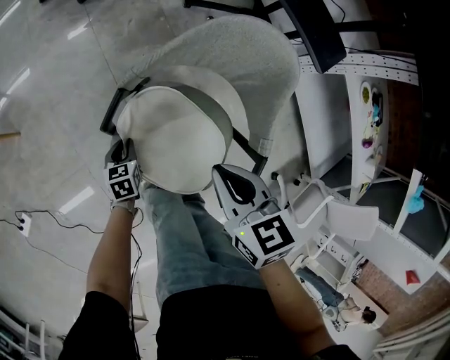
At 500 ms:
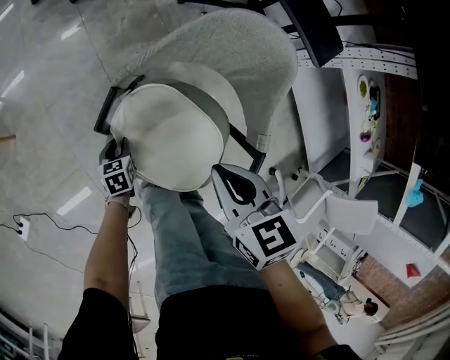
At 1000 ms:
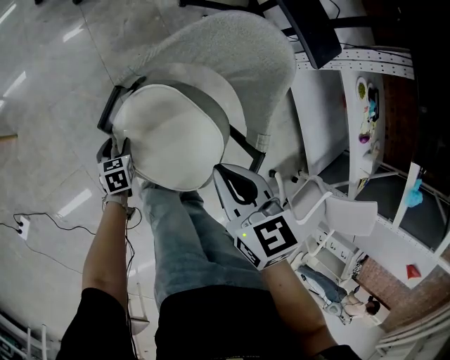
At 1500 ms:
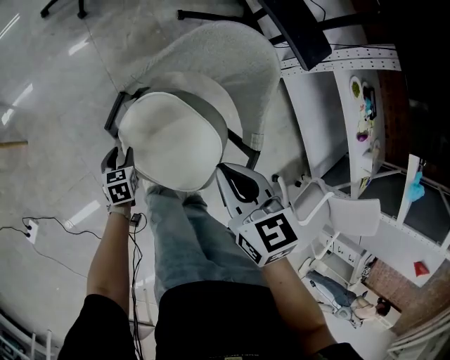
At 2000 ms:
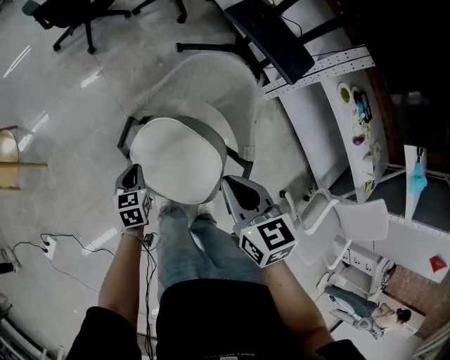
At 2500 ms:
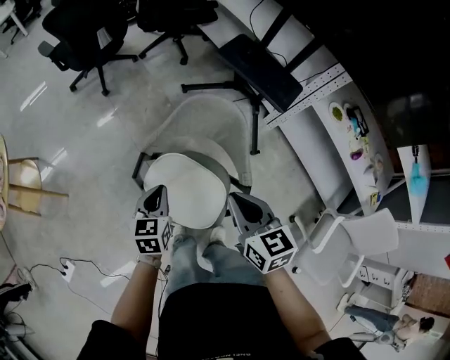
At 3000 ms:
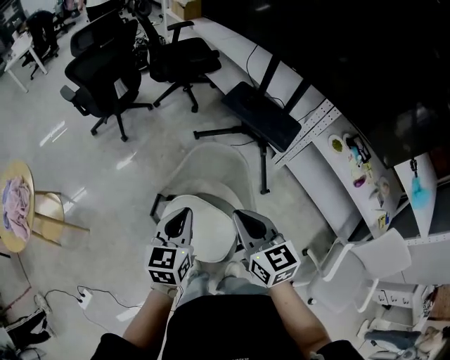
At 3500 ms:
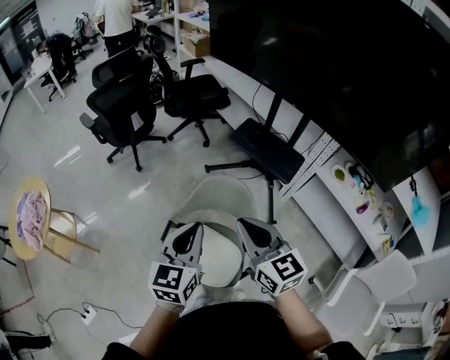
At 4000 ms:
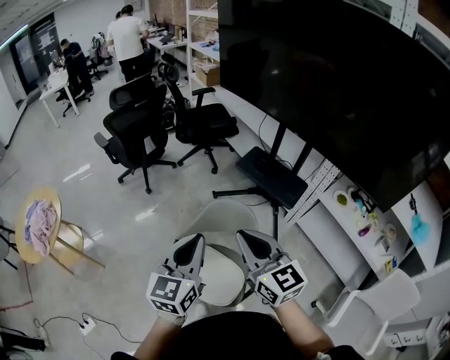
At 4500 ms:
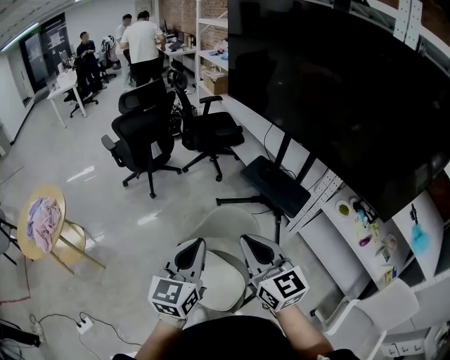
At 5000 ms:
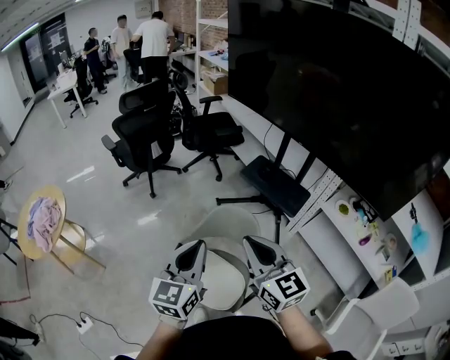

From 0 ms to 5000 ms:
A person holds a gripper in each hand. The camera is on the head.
From 0 ms to 2500 ms: The left gripper travels upward by roughly 35 cm, swivels approximately 20 degrees, and opens, then closes once more. The right gripper is displaced upward and to the right by roughly 15 cm, and turns by roughly 20 degrees.
From 2500 ms to 5000 ms: The two grippers go some 25 cm upward. The left gripper points its fingers roughly 30 degrees further upward; the right gripper turns by roughly 30 degrees.

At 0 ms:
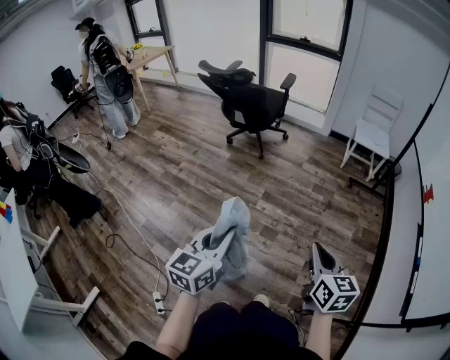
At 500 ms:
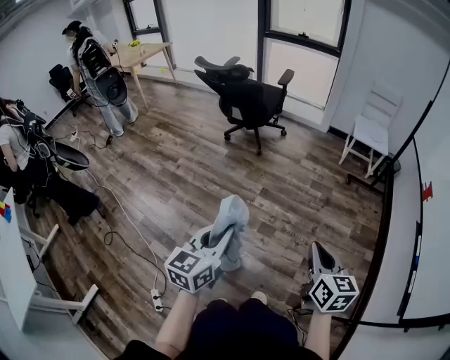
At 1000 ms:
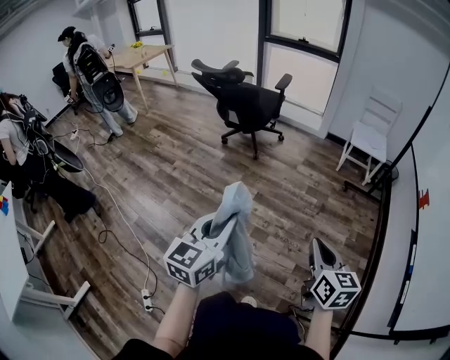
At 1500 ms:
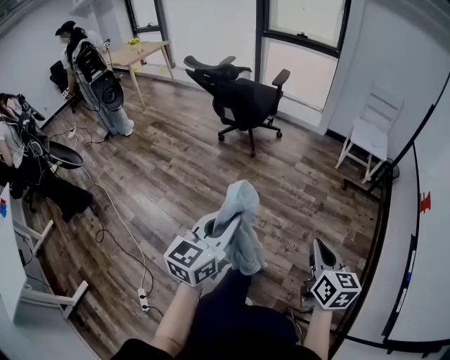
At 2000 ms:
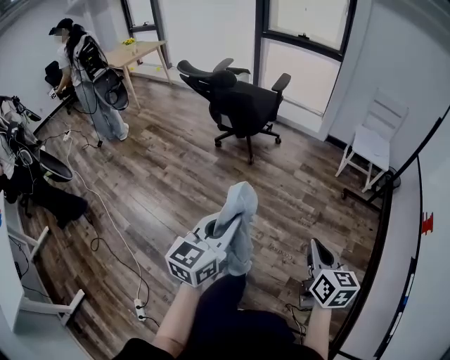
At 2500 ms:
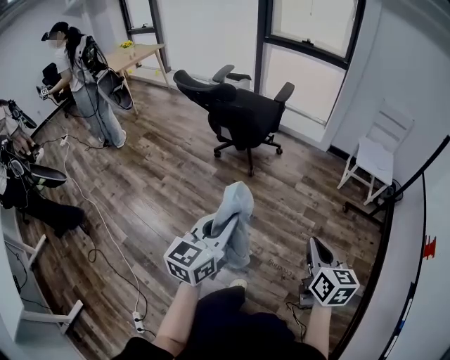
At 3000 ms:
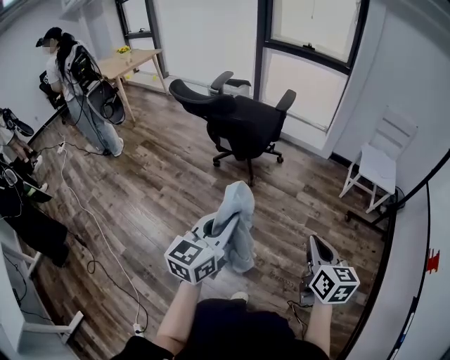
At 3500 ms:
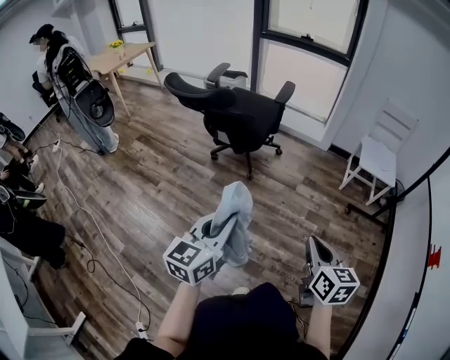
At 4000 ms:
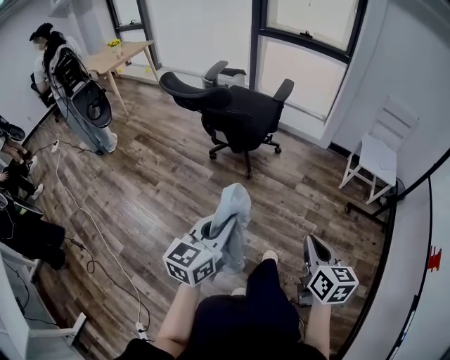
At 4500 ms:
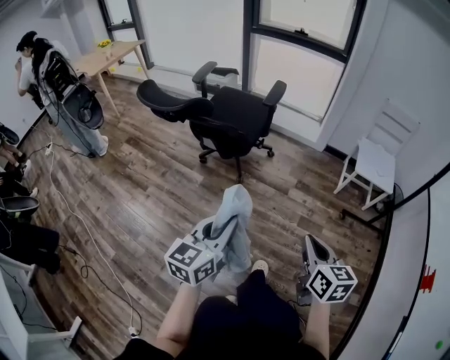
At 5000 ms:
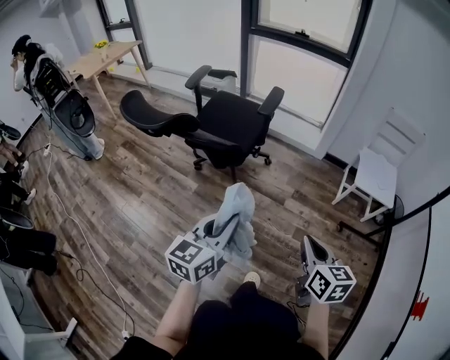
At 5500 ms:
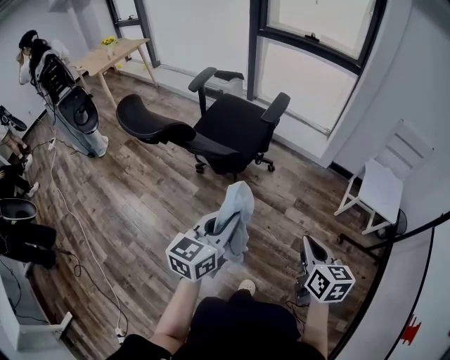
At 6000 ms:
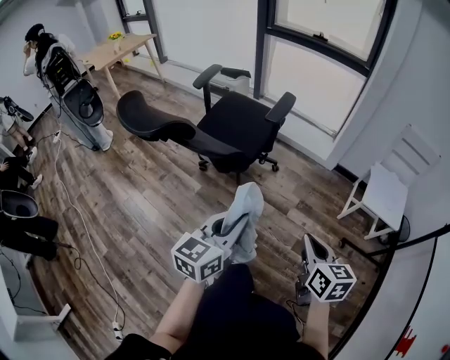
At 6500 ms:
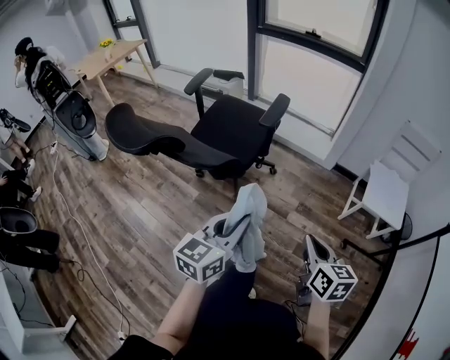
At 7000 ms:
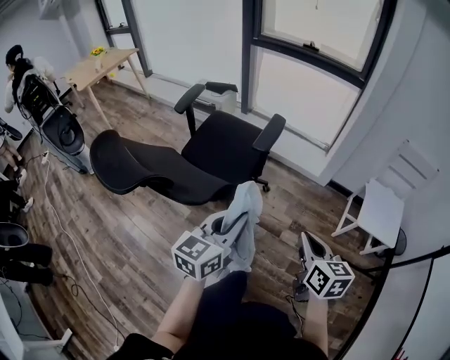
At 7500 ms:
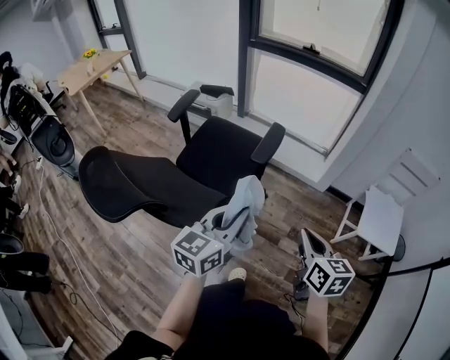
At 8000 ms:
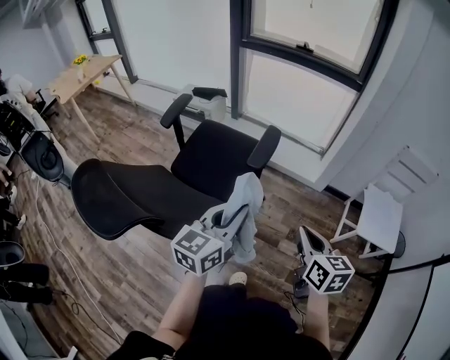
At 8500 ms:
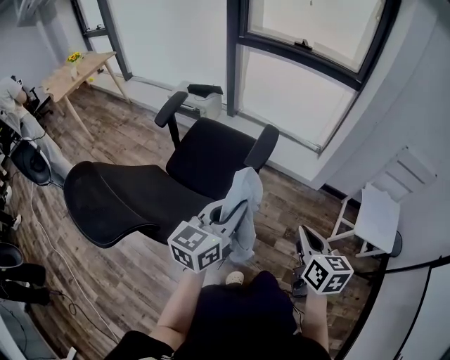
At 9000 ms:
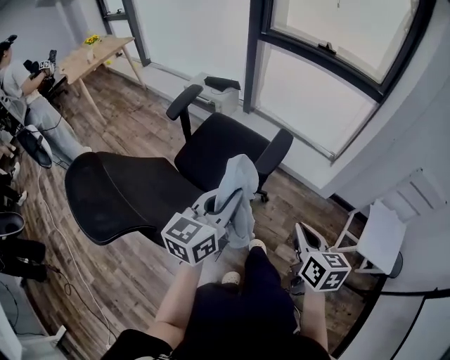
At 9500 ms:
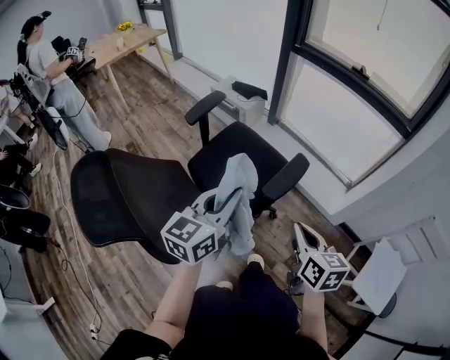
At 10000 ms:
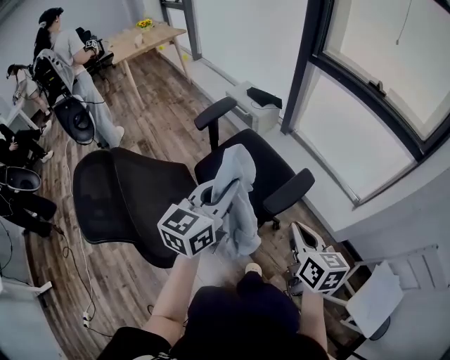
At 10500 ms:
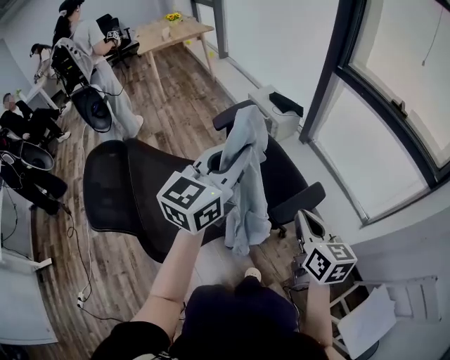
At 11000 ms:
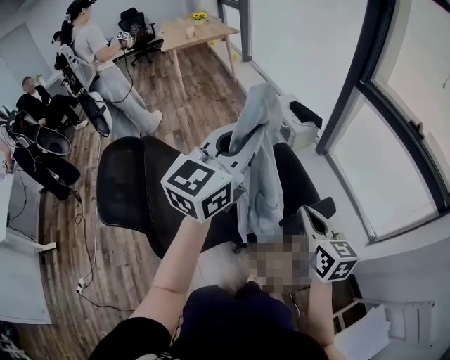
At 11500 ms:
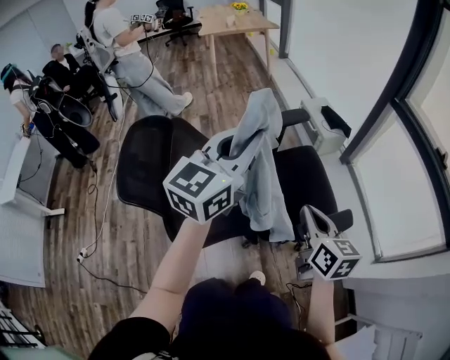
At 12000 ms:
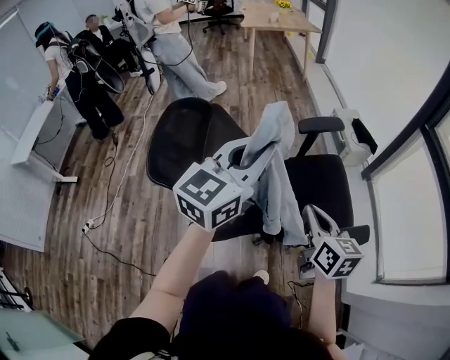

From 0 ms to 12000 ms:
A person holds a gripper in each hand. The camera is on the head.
From 0 ms to 2000 ms: The left gripper is displaced forward and to the right by approximately 20 cm. The right gripper goes some 20 cm forward.
From 2000 ms to 4000 ms: Both grippers move forward, approximately 20 cm.
From 4000 ms to 6000 ms: The right gripper moves forward, some 30 cm. Meanwhile the left gripper heads forward and to the right, covering about 30 cm.
From 6000 ms to 8000 ms: Both grippers move forward, approximately 30 cm.
From 8000 ms to 10000 ms: The left gripper moves some 20 cm, and rotates some 30 degrees. Meanwhile the right gripper shifts by approximately 25 cm, and turns by approximately 30 degrees.
From 10000 ms to 12000 ms: The right gripper shifts by approximately 20 cm, and swivels roughly 30 degrees, while the left gripper shifts by about 20 cm, and swivels some 30 degrees.

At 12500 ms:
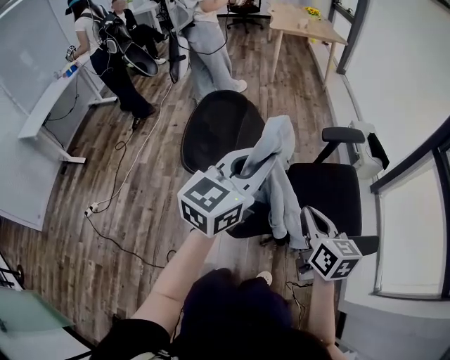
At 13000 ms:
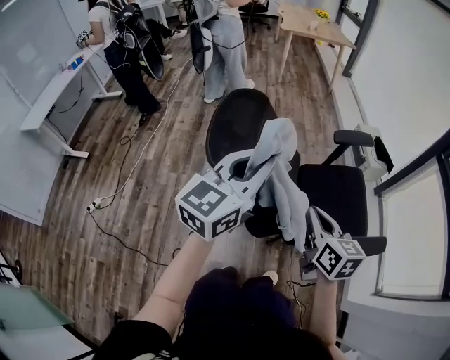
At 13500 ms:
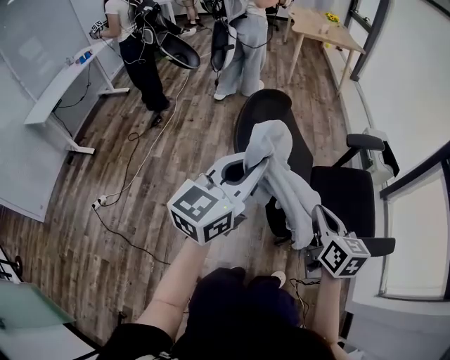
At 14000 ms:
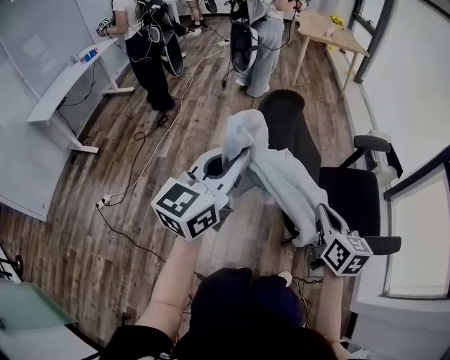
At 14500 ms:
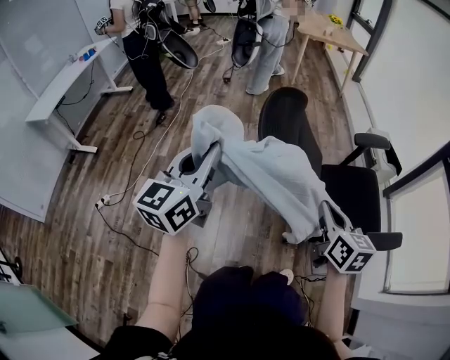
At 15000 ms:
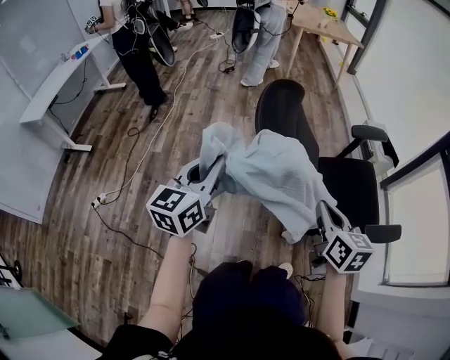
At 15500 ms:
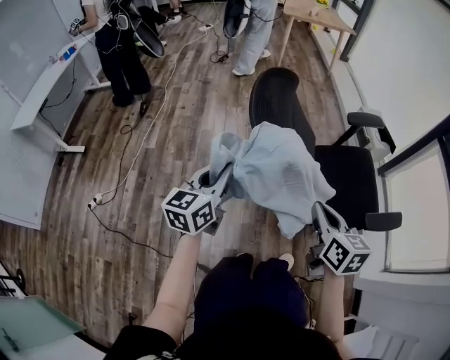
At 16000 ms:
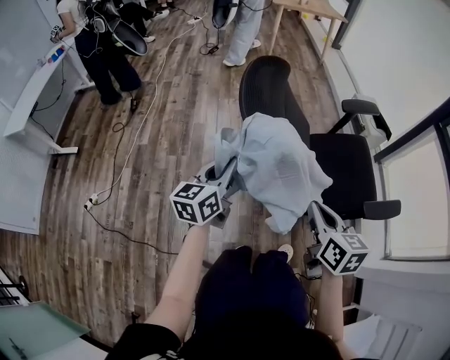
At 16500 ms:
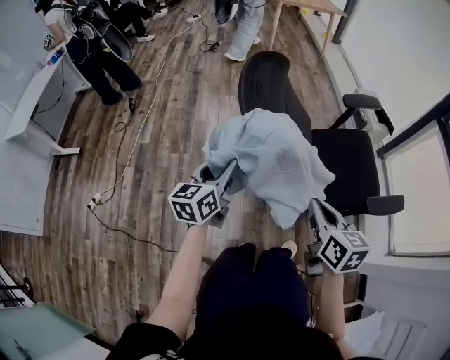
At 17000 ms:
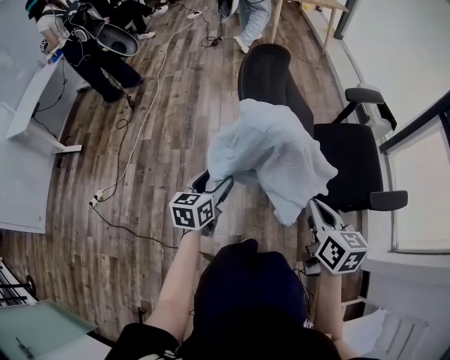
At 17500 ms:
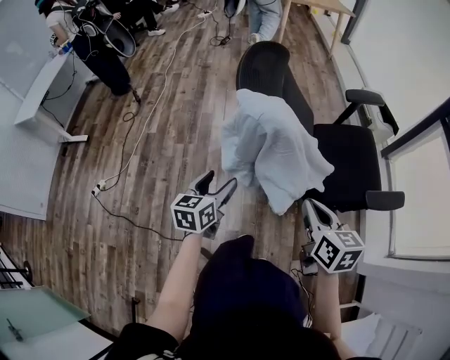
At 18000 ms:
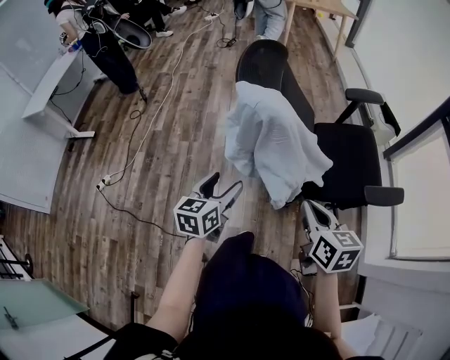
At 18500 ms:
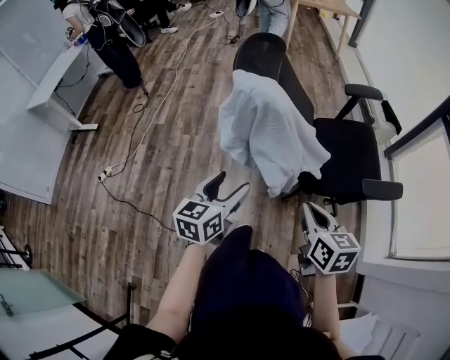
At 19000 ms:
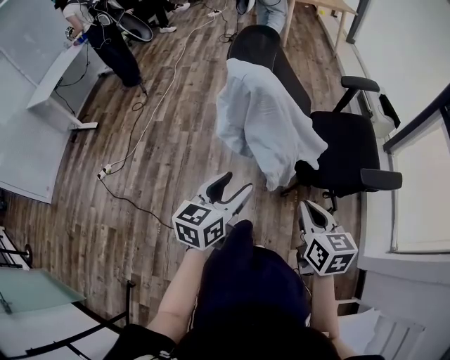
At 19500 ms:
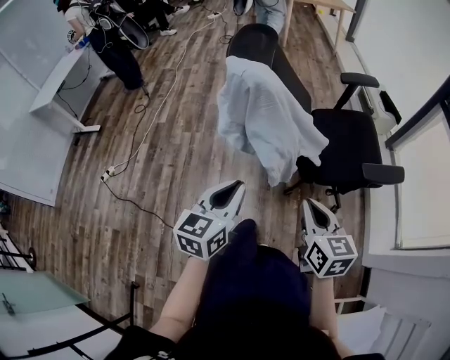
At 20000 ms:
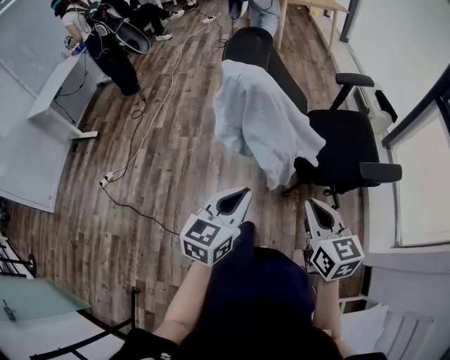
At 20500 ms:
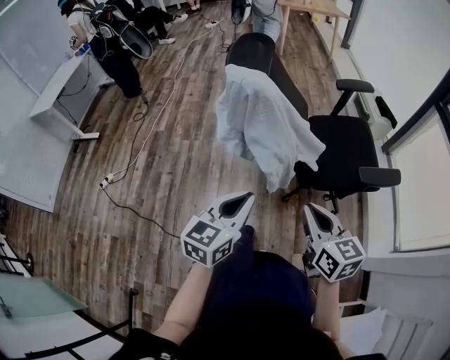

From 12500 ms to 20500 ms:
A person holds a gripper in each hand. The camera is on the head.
From 12500 ms to 14500 ms: The right gripper shifts approximately 15 cm to the left. Meanwhile the left gripper is displaced to the left by about 30 cm, and swivels some 20 degrees.
From 14500 ms to 16500 ms: The right gripper heads backward and downward, covering about 10 cm. Meanwhile the left gripper goes about 20 cm downward, turns by some 20 degrees, and opens up.
From 16500 ms to 18500 ms: The left gripper shifts roughly 20 cm backward and to the right, and opens up, while the right gripper shifts about 15 cm backward.
From 18500 ms to 20500 ms: The left gripper heads backward and to the right, covering some 10 cm, and closes its fingers; the right gripper moves backward, approximately 5 cm.

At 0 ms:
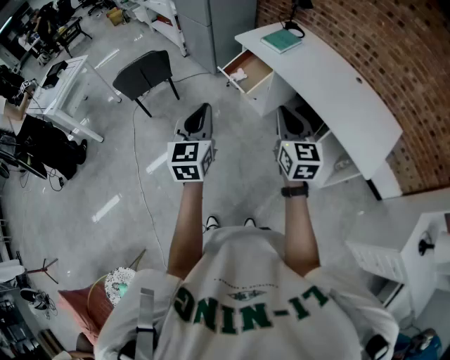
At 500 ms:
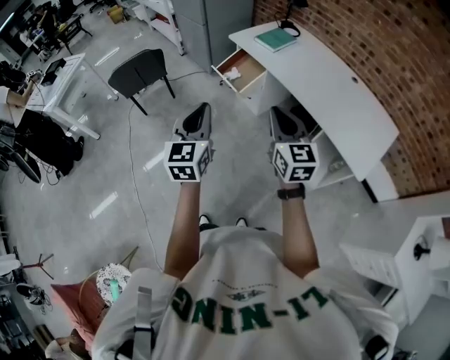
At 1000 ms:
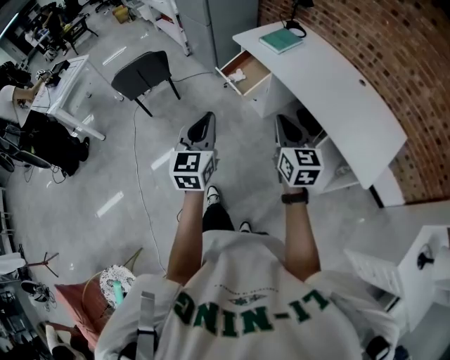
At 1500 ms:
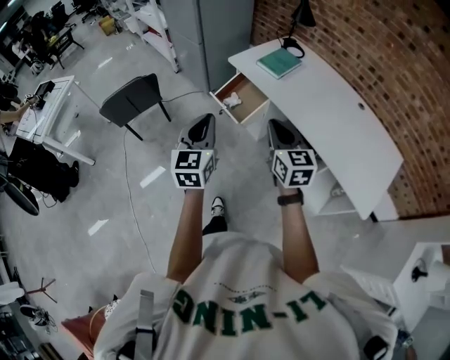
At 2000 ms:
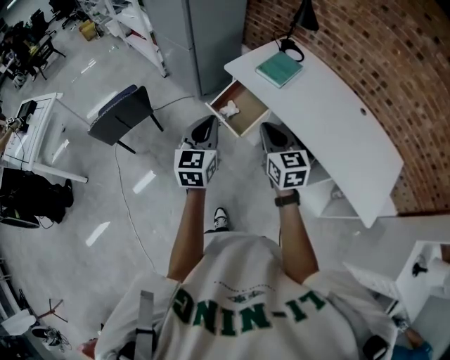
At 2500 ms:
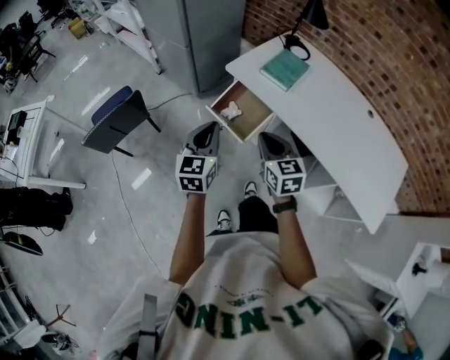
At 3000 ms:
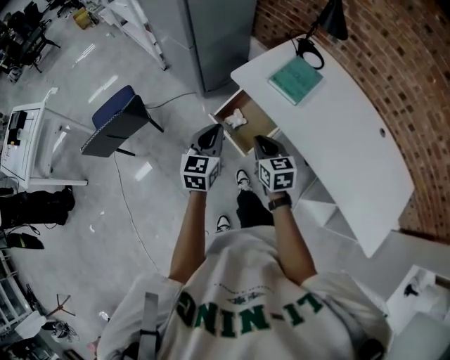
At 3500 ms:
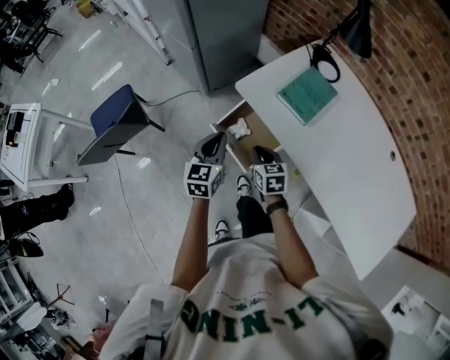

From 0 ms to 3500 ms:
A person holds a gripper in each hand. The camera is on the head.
From 0 ms to 2000 ms: The two grippers go about 30 cm forward.
From 2000 ms to 3500 ms: The left gripper is displaced forward and downward by about 30 cm, while the right gripper shifts approximately 35 cm downward and forward, and swivels some 30 degrees.
